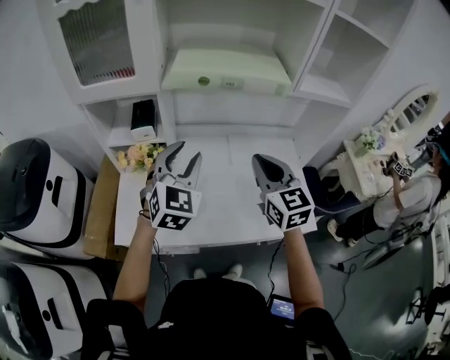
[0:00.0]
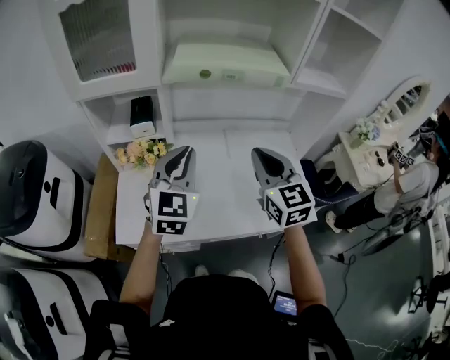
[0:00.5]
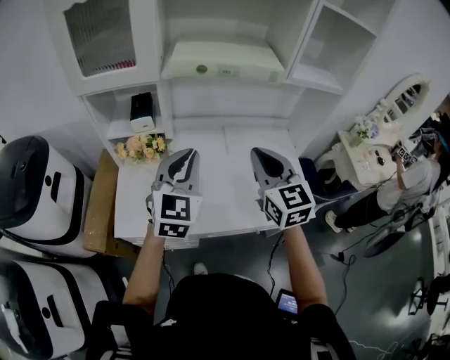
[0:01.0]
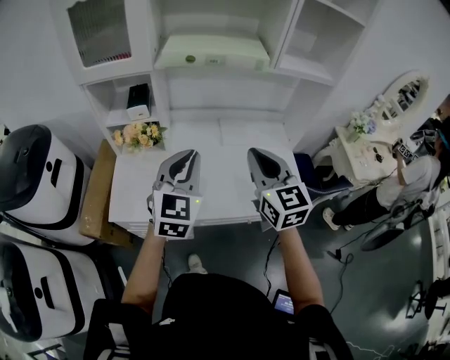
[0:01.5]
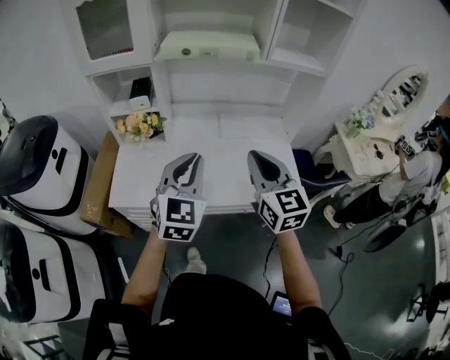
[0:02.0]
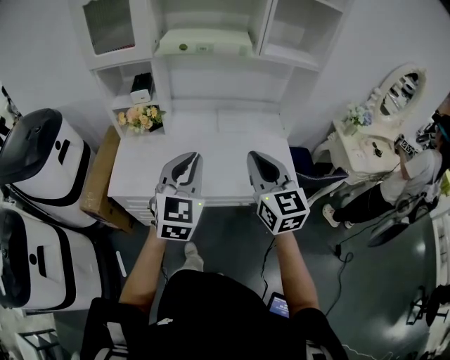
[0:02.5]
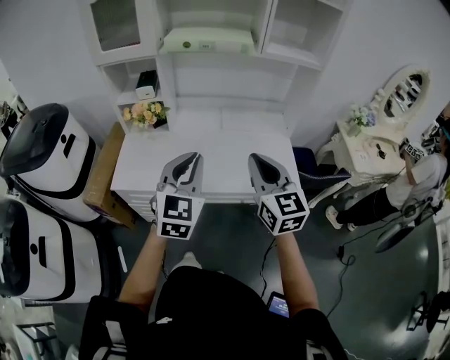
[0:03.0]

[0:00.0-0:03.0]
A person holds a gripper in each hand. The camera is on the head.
0:00.0 to 0:01.5: Both grippers move backward, roughly 10 cm. The left gripper closes.
0:01.5 to 0:03.0: Both grippers travel together backward, about 15 cm.

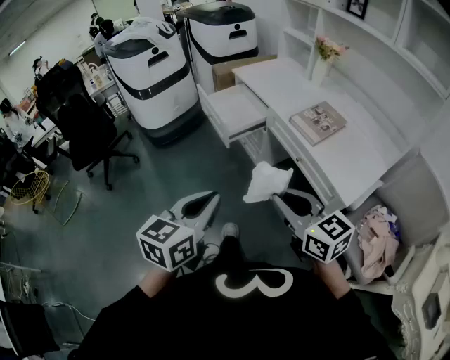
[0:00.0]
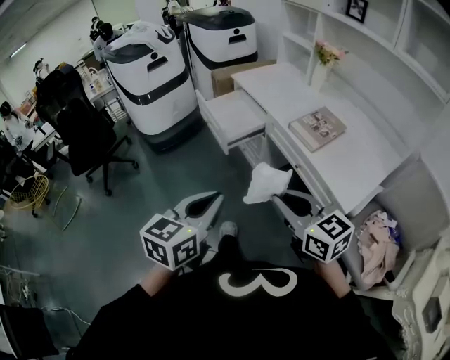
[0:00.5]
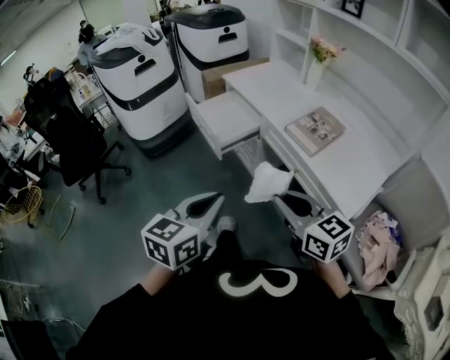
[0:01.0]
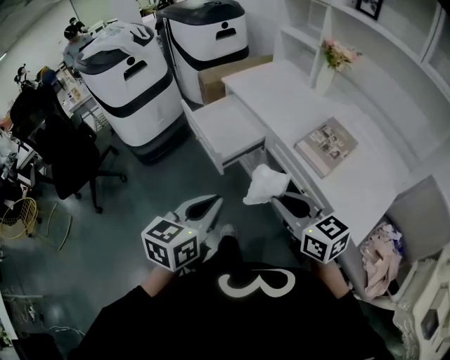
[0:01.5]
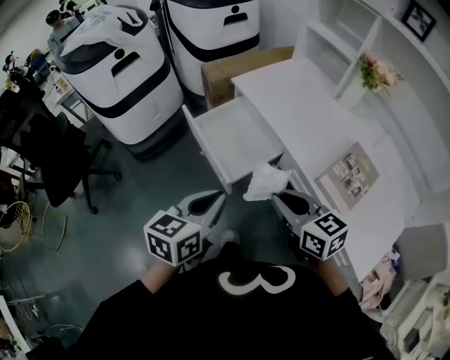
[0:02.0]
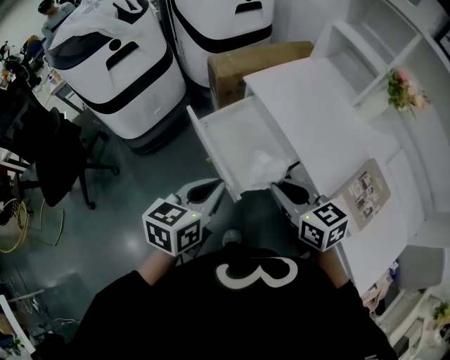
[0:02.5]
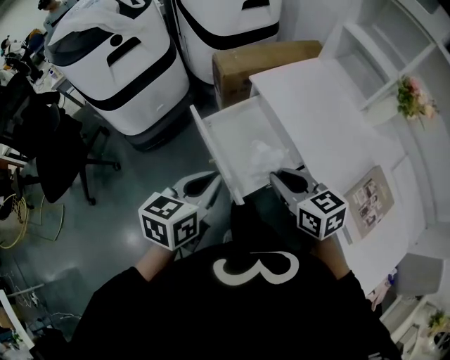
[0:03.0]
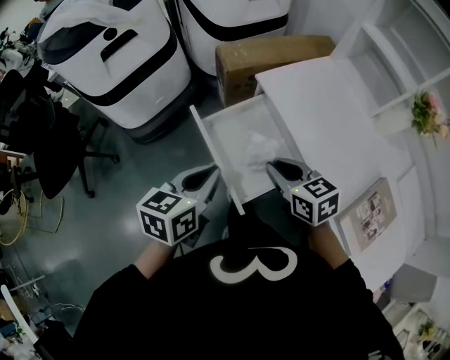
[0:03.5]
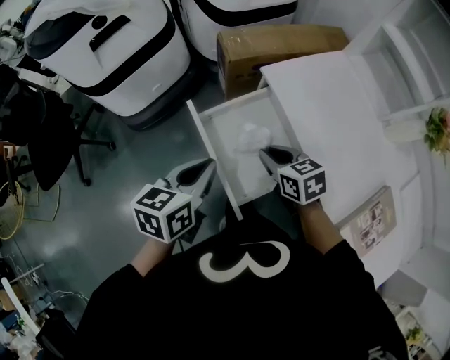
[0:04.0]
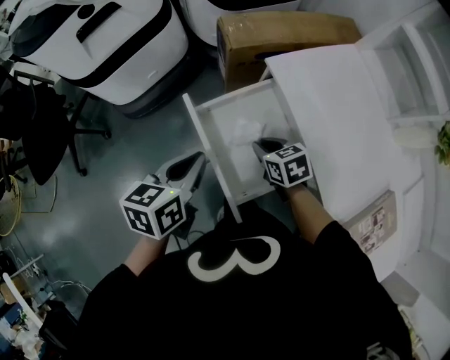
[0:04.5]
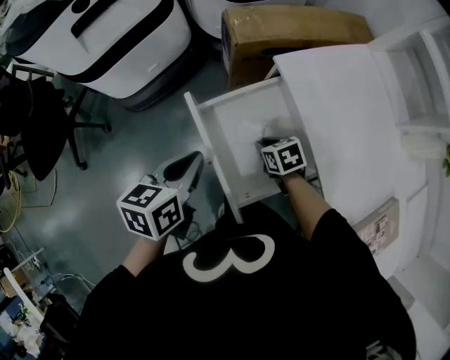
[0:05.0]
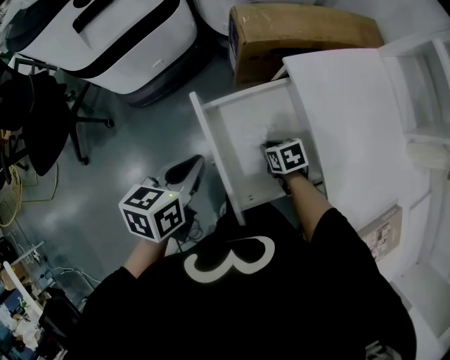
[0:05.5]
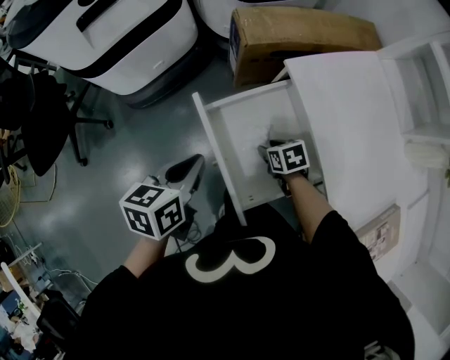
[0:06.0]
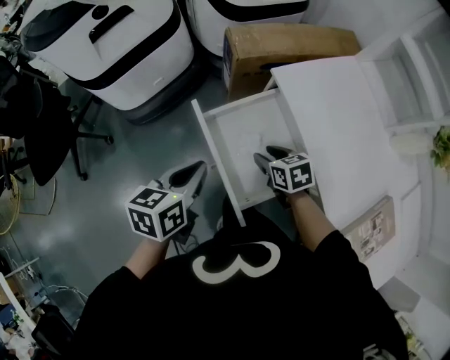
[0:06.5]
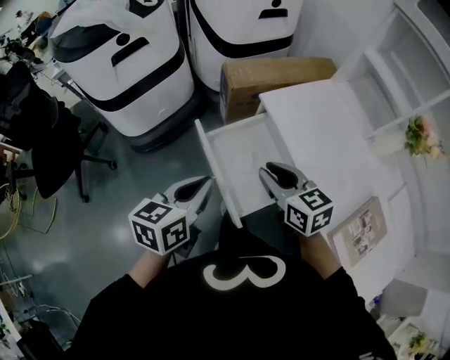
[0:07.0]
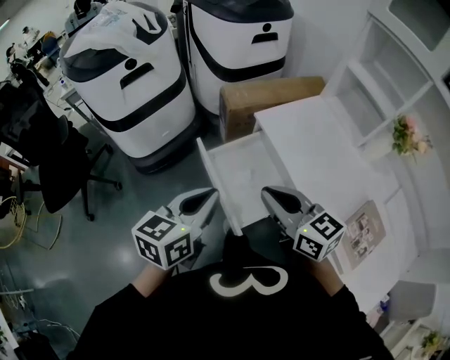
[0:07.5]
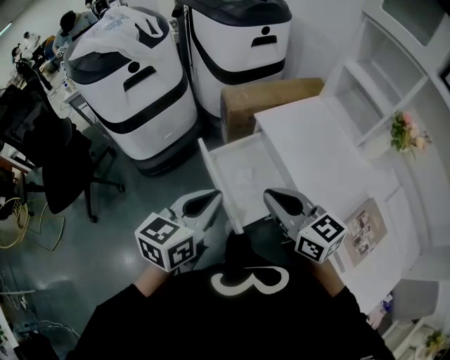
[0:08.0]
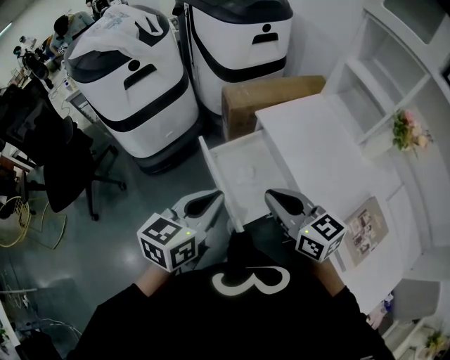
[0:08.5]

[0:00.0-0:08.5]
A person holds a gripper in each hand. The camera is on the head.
0:00.0 to 0:02.0: The pair of grippers is taken forward, about 40 cm.
0:02.0 to 0:04.0: The right gripper shifts roughly 35 cm forward and downward, and swivels some 20 degrees. Meanwhile the left gripper is displaced forward by some 25 cm.
0:04.0 to 0:06.5: The right gripper moves downward, some 10 cm, and opens.
0:06.5 to 0:08.5: The right gripper travels upward and backward by about 30 cm, points its fingers some 40 degrees further upward, and closes its fingers; the left gripper goes some 20 cm upward and backward, and turns by roughly 20 degrees.

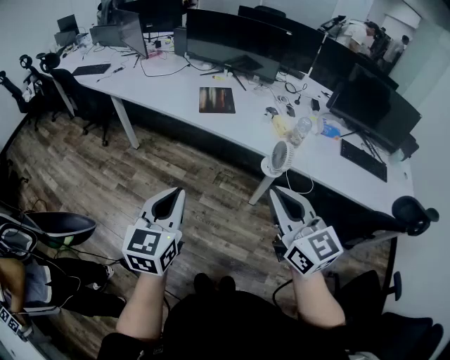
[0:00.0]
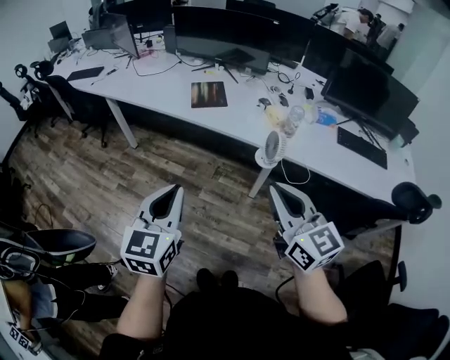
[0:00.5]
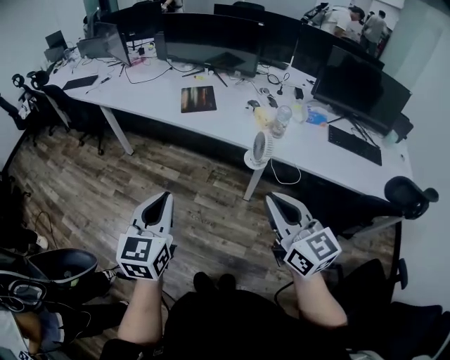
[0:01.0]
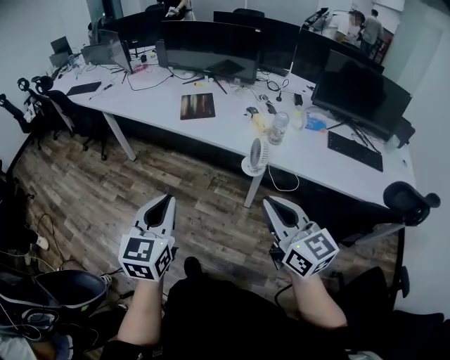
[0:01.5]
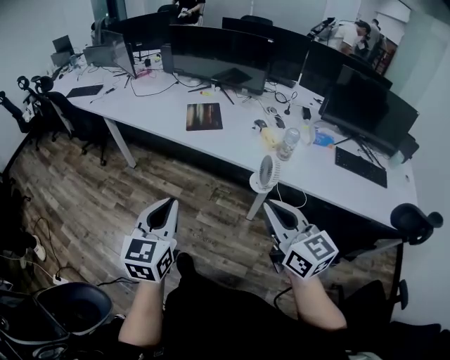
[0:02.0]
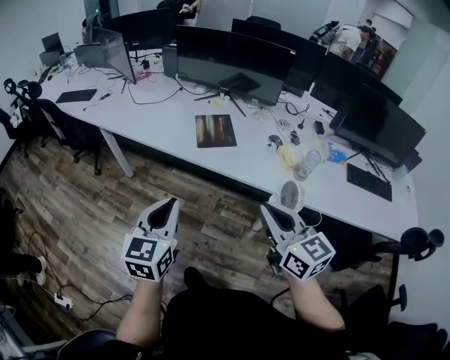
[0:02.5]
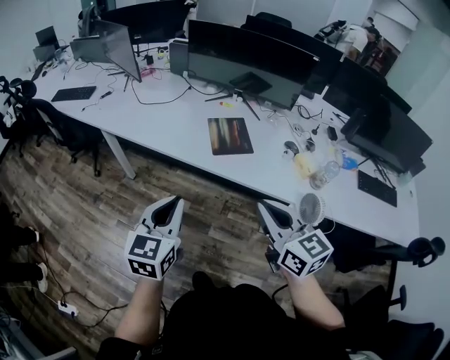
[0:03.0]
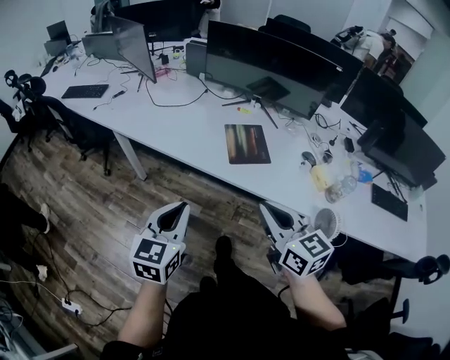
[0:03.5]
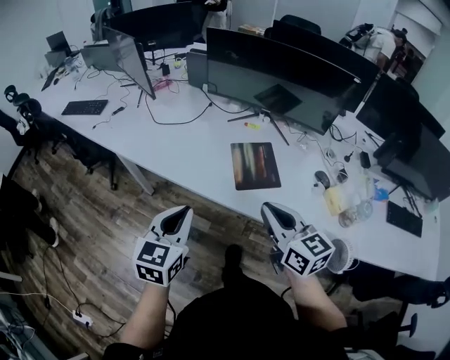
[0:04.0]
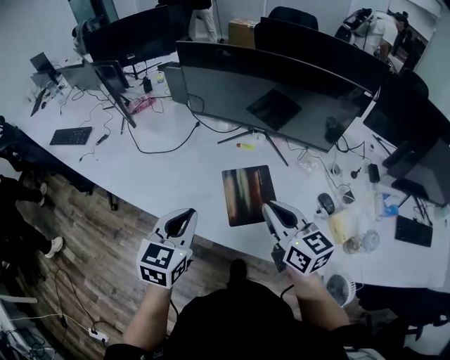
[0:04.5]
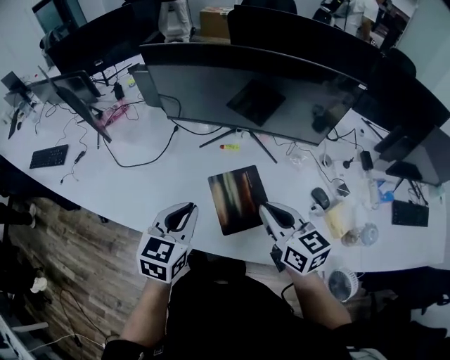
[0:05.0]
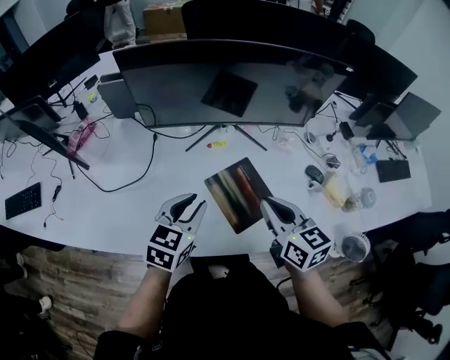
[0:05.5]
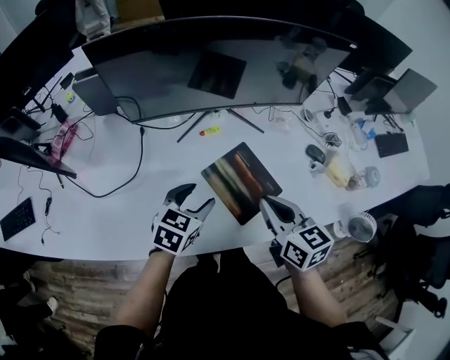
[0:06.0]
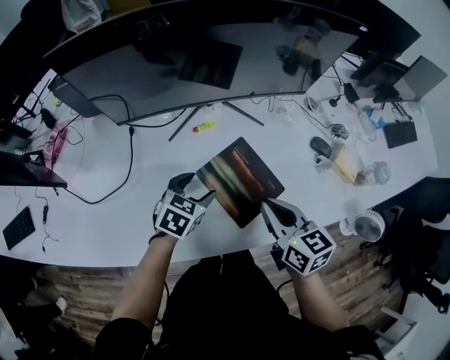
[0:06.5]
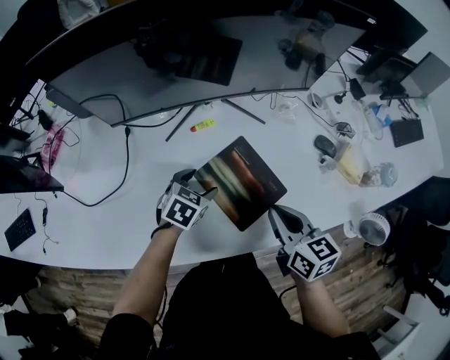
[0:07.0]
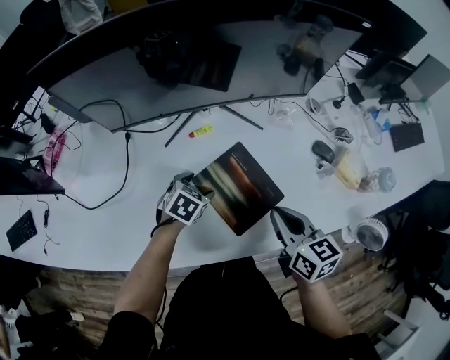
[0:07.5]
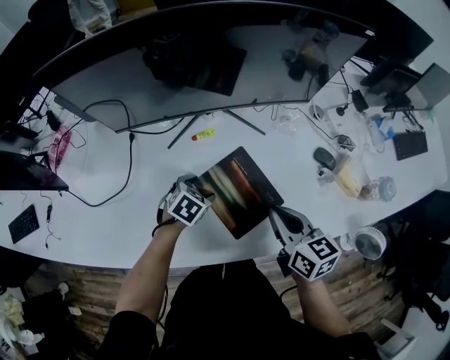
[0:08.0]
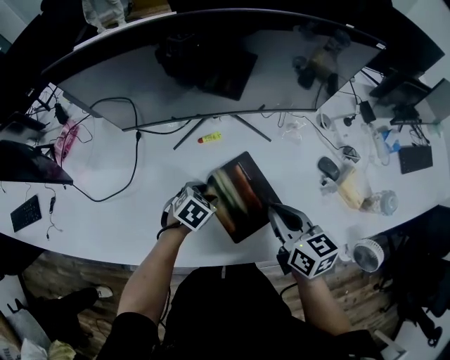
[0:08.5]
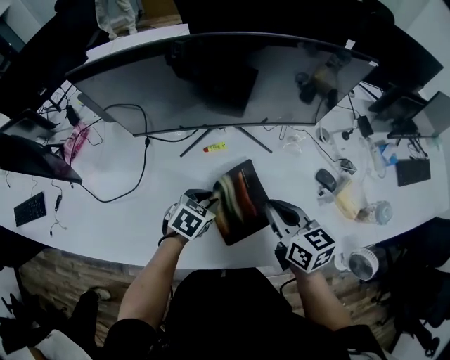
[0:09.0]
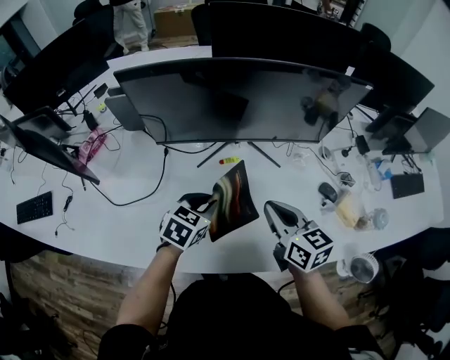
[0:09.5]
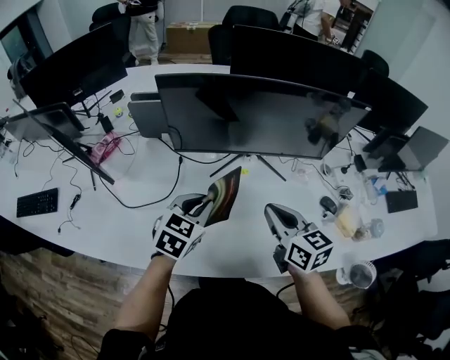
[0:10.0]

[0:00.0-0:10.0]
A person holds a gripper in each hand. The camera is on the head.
0:00.0 to 0:02.0: Both grippers travel together to the right, roughly 5 cm.
0:02.0 to 0:04.0: Both grippers are carried forward and to the left, some 50 cm.
0:04.0 to 0:06.0: The left gripper ends up roughly 35 cm from where it was, turns by some 50 degrees, and opens its fingers. Meanwhile the right gripper changes place by some 25 cm, and changes its angle by about 40 degrees.
0:06.0 to 0:08.0: The left gripper travels downward and forward by approximately 15 cm, and turns by about 30 degrees, while the right gripper shifts approximately 10 cm to the right and downward.
0:08.0 to 0:10.0: The left gripper moves upward and to the left, some 25 cm, swivels some 30 degrees, and closes up. Meanwhile the right gripper moves to the left and upward, about 15 cm.

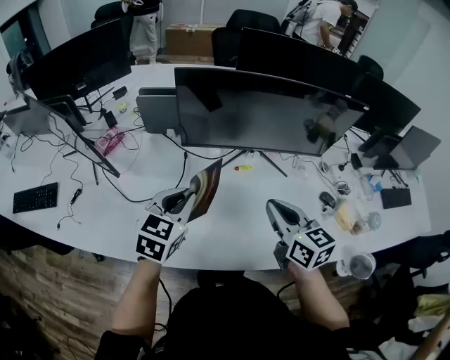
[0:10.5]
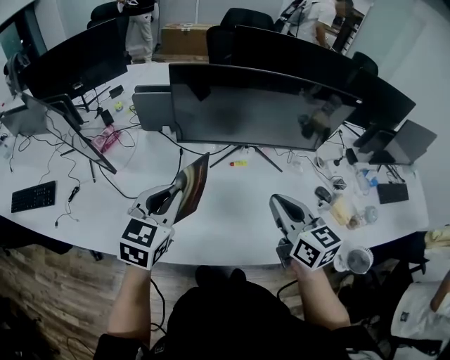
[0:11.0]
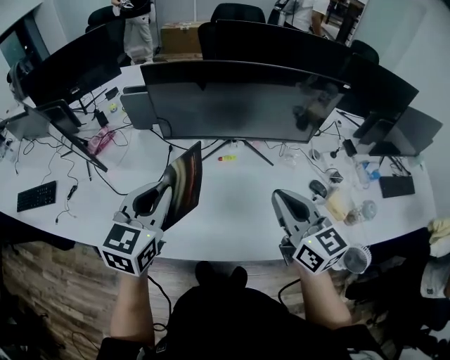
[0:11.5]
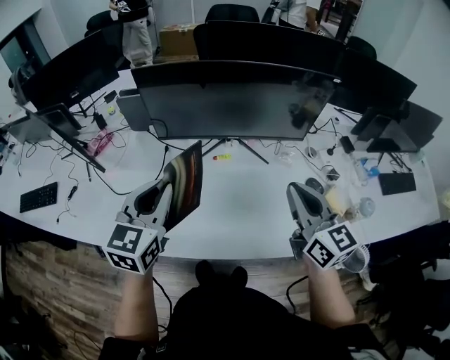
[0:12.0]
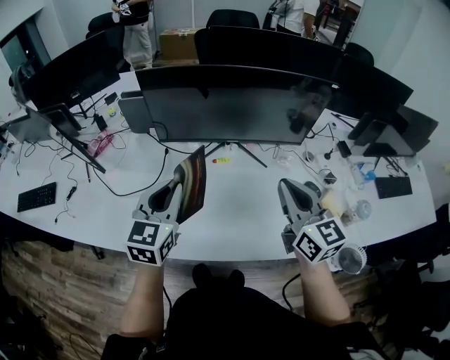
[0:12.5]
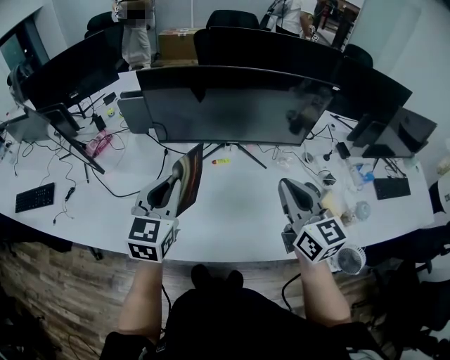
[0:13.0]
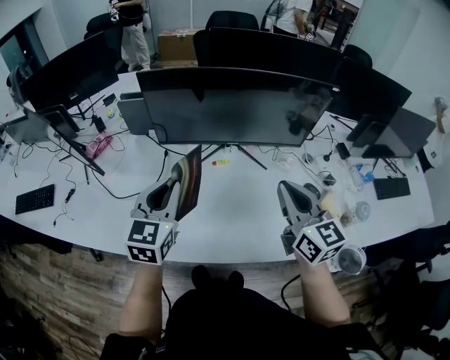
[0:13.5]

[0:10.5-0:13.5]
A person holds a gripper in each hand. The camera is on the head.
0:10.5 to 0:12.0: The right gripper goes approximately 15 cm to the right and upward; the left gripper heads upward and to the right, covering roughly 10 cm.
0:12.0 to 0:13.5: The grippers make only small movements.

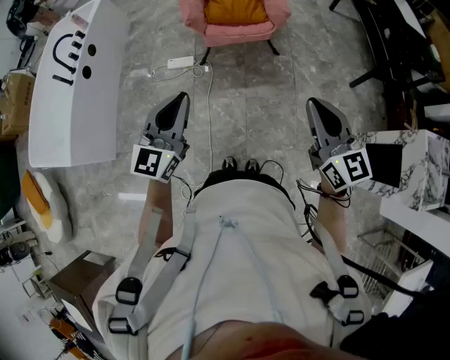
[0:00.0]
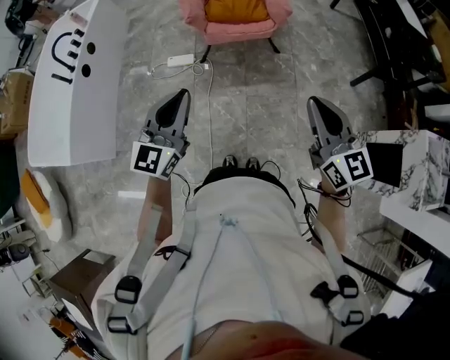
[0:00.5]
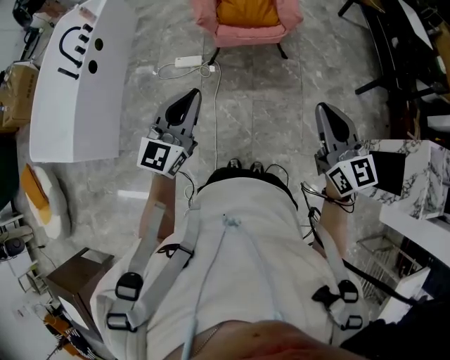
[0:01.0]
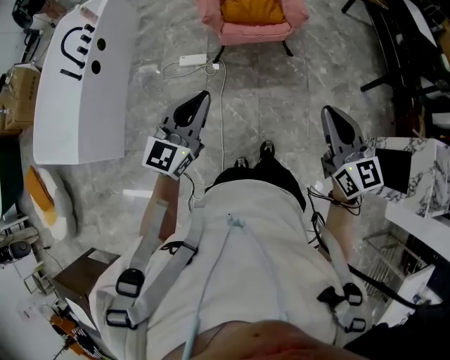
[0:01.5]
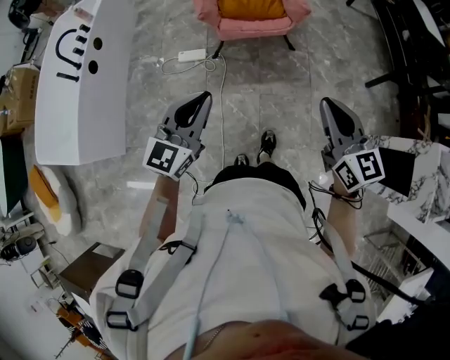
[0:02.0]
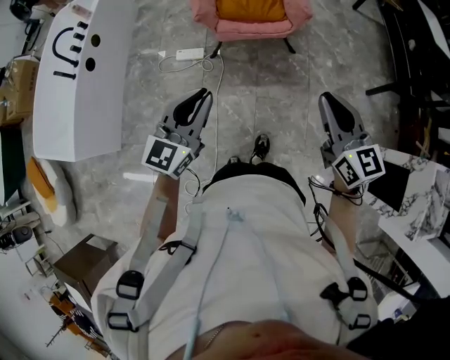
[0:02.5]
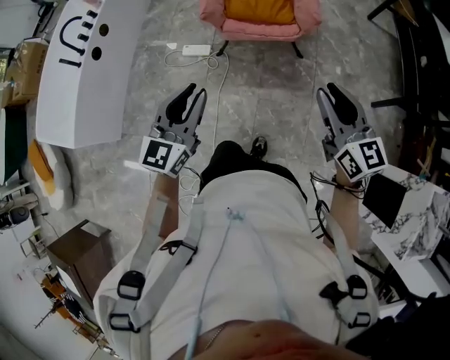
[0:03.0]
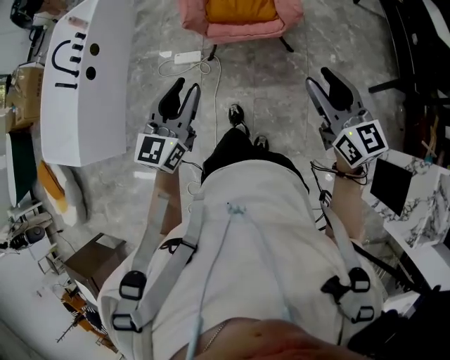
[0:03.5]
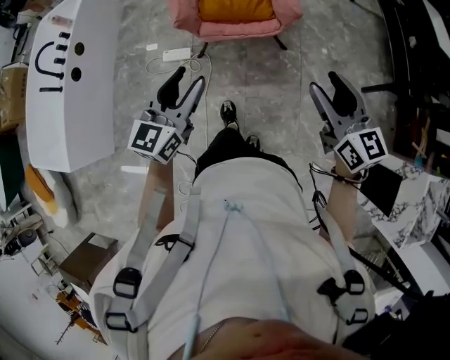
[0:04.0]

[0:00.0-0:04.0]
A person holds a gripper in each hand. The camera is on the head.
0:00.0 to 0:02.0: Both grippers move forward, roughly 5 cm.
0:02.0 to 0:04.0: Both grippers move forward and to the right, about 25 cm. The right gripper opens.
